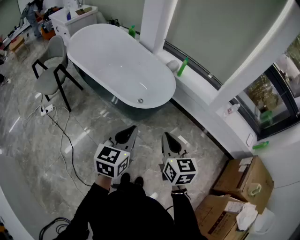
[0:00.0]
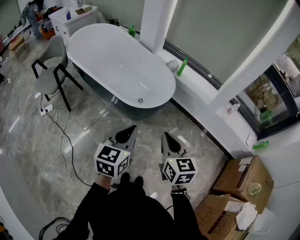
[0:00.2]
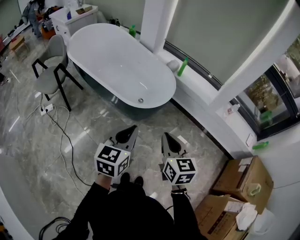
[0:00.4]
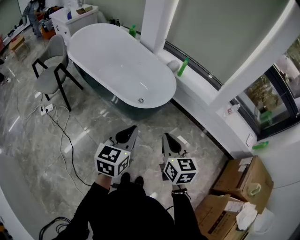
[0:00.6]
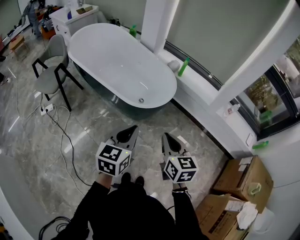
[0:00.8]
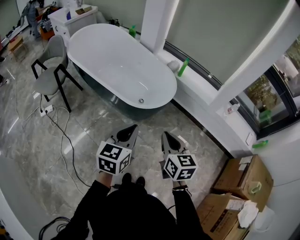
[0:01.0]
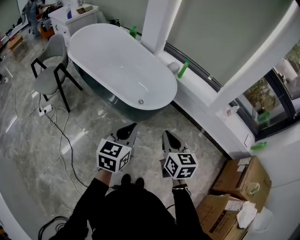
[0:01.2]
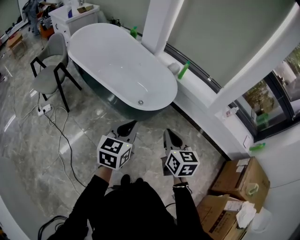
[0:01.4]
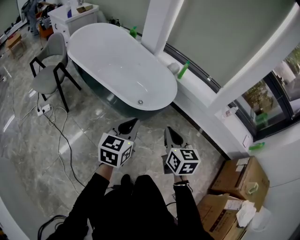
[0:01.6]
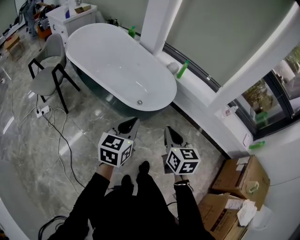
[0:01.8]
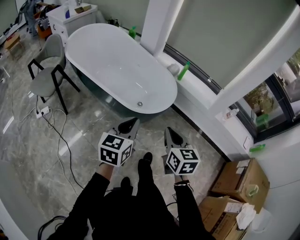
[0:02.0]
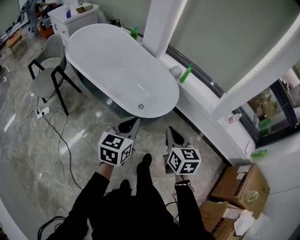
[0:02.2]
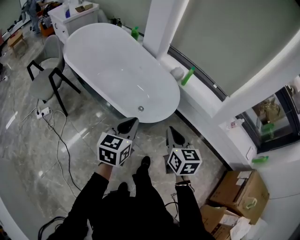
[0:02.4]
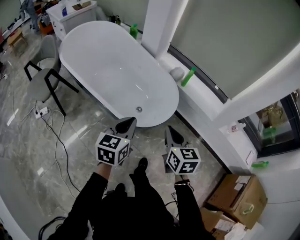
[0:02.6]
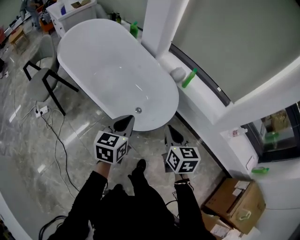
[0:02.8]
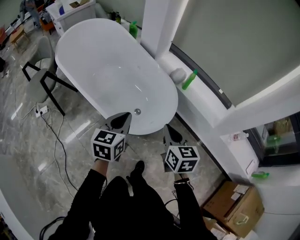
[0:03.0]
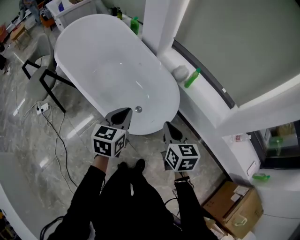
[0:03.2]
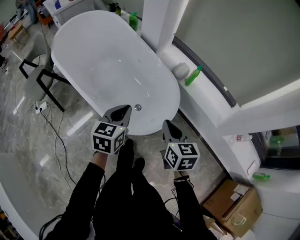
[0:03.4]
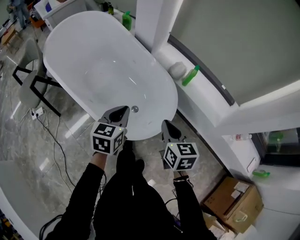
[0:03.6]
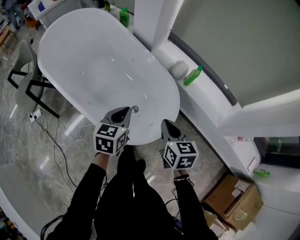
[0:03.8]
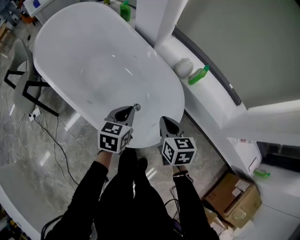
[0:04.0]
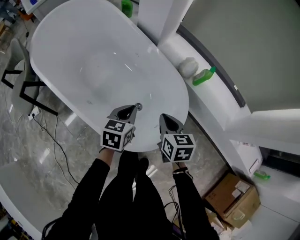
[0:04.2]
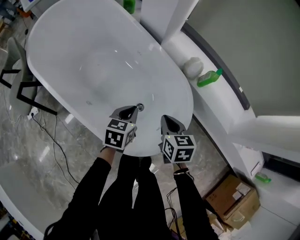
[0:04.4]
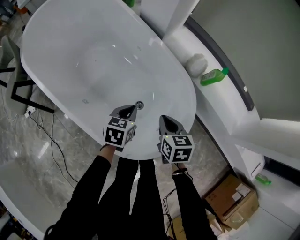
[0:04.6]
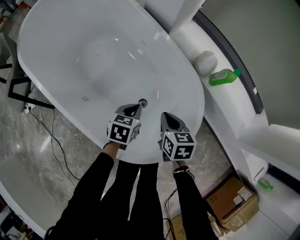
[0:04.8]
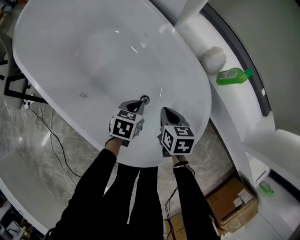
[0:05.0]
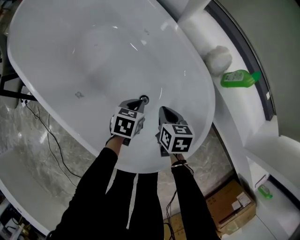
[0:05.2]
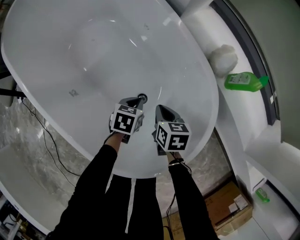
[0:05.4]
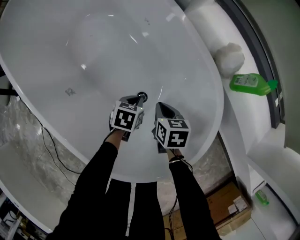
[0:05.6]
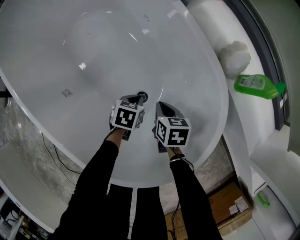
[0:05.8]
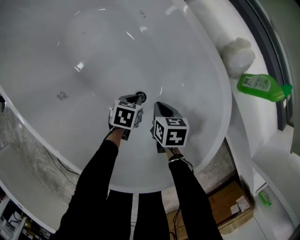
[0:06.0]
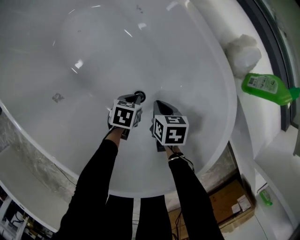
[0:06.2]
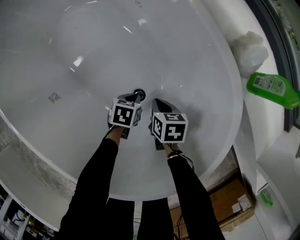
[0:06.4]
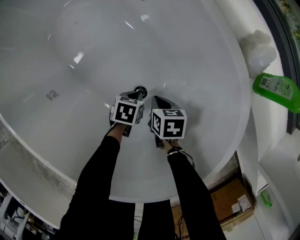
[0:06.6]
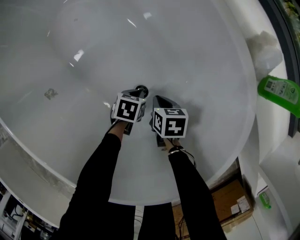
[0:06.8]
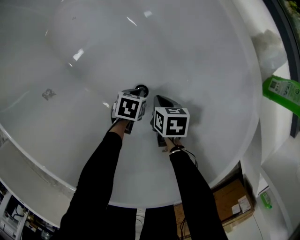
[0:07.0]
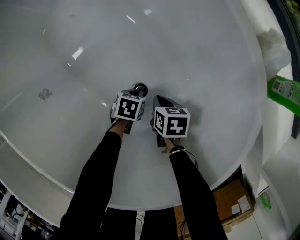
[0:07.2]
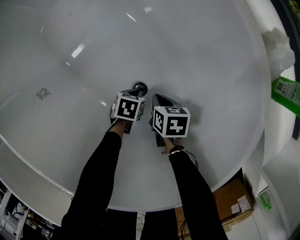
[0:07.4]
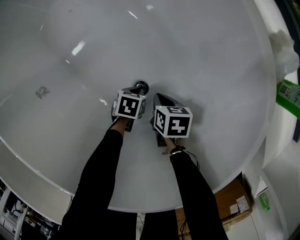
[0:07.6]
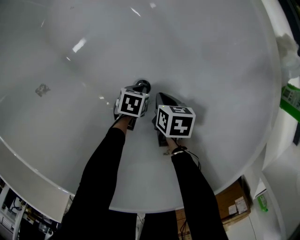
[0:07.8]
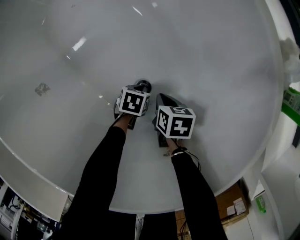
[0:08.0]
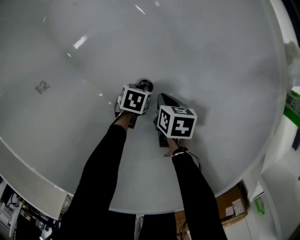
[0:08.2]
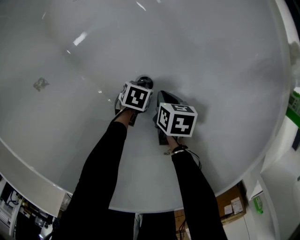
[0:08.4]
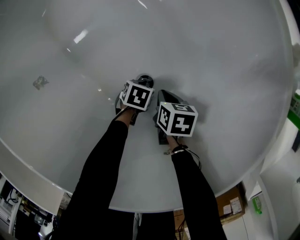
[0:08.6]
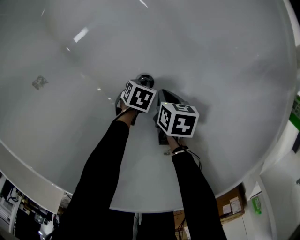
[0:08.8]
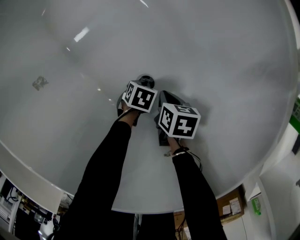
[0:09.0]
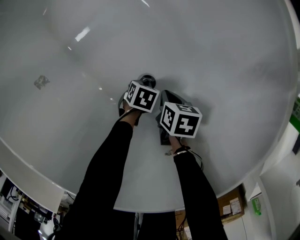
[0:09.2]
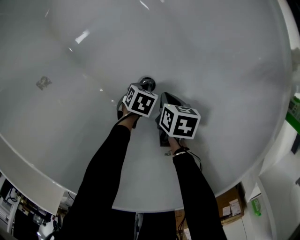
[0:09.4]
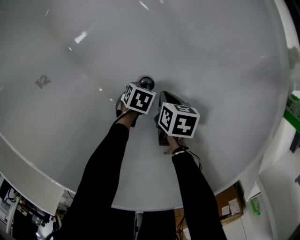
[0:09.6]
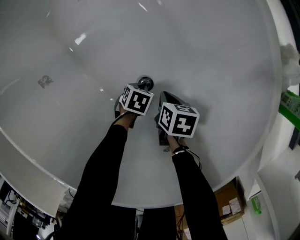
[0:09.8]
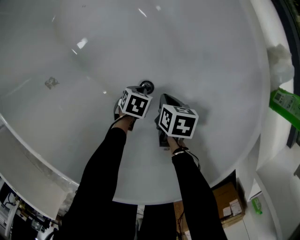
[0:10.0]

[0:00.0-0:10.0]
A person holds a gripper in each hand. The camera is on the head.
0:00.0 to 0:01.4: The left gripper ends up approximately 5 cm from where it was.
0:01.4 to 0:02.8: Both grippers move forward, approximately 25 cm.
0:02.8 to 0:04.2: Both grippers travel together forward and downward, approximately 25 cm.
0:04.2 to 0:05.8: Both grippers move downward, approximately 35 cm. The left gripper swivels roughly 30 degrees. Meanwhile the right gripper rotates about 20 degrees.
0:05.8 to 0:07.2: Both grippers travel together downward, about 15 cm.
0:07.2 to 0:08.6: There are only small adjustments of the grippers.
0:08.6 to 0:10.0: The left gripper heads upward, covering roughly 5 cm.

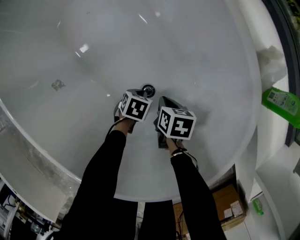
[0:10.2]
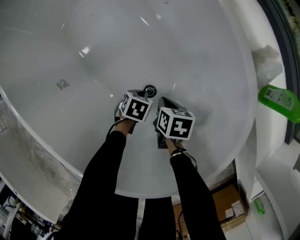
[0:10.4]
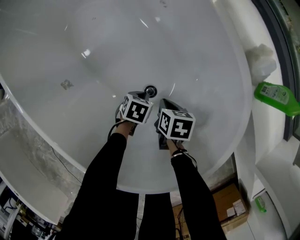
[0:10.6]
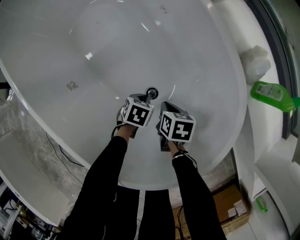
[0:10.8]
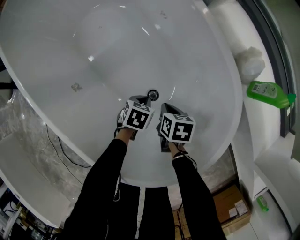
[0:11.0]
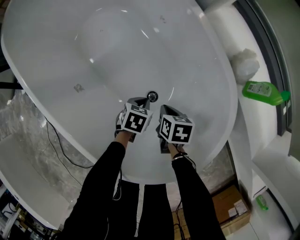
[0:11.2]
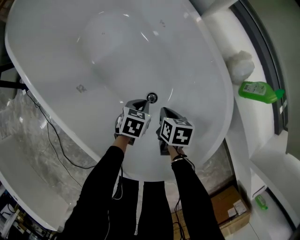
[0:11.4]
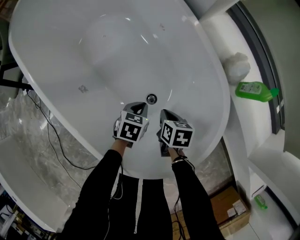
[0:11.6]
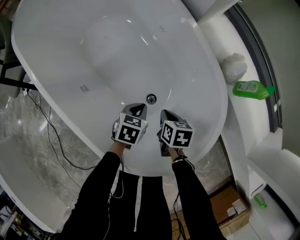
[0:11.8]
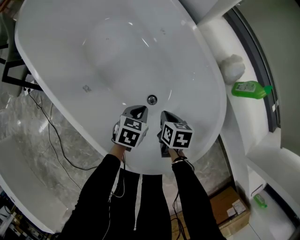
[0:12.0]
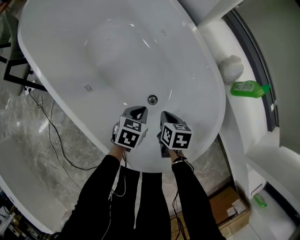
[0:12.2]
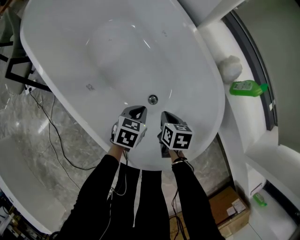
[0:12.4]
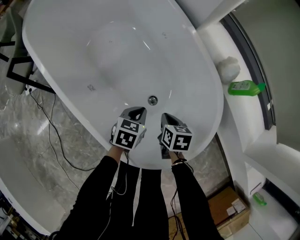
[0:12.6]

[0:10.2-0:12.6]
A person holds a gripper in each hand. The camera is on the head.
0:10.2 to 0:11.4: The grippers both shift upward by some 15 cm.
0:11.4 to 0:12.6: Both grippers travel together upward, approximately 10 cm.

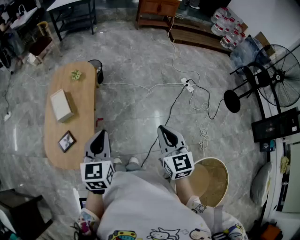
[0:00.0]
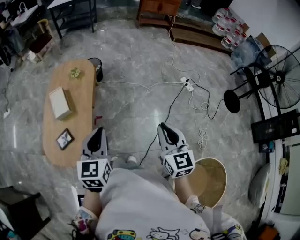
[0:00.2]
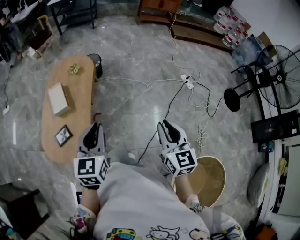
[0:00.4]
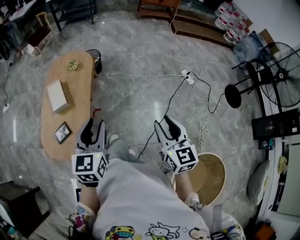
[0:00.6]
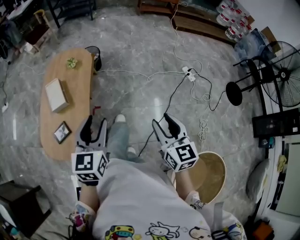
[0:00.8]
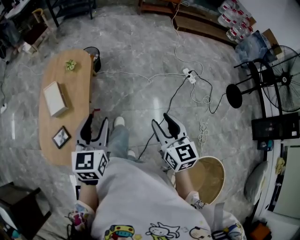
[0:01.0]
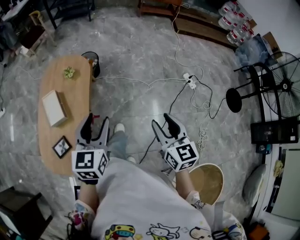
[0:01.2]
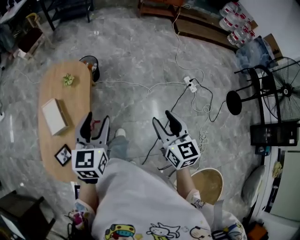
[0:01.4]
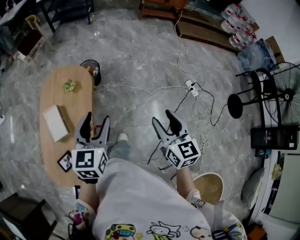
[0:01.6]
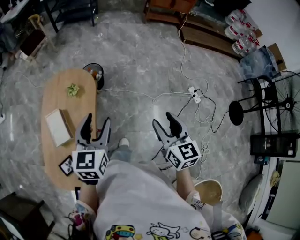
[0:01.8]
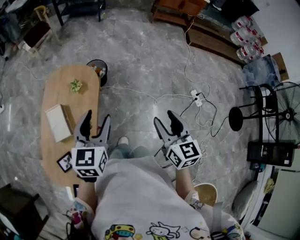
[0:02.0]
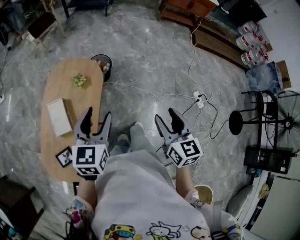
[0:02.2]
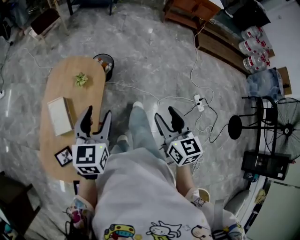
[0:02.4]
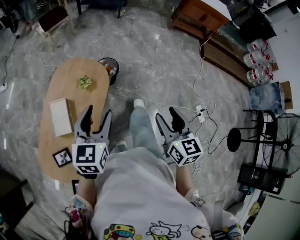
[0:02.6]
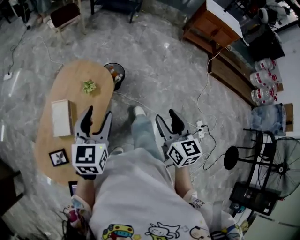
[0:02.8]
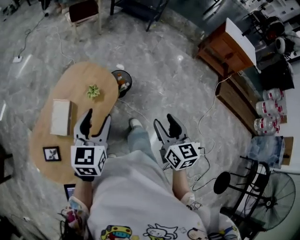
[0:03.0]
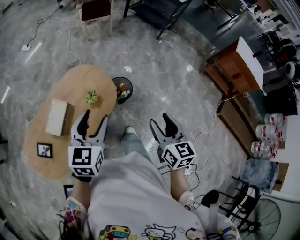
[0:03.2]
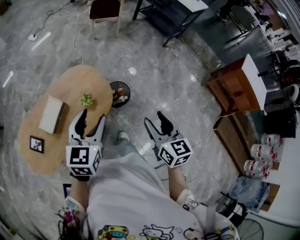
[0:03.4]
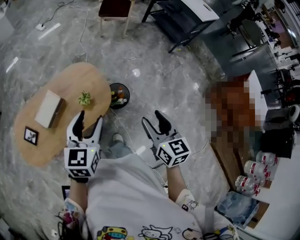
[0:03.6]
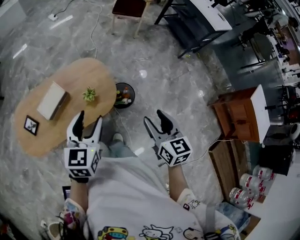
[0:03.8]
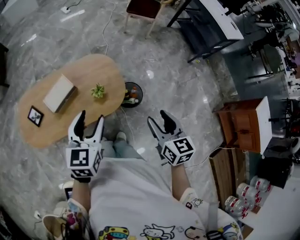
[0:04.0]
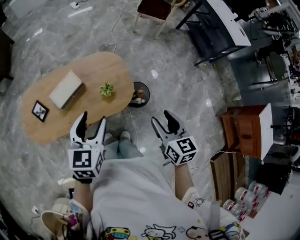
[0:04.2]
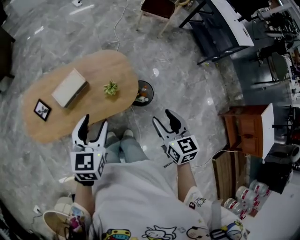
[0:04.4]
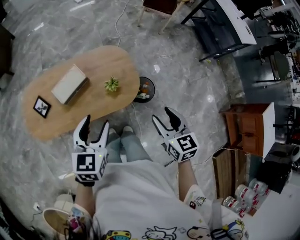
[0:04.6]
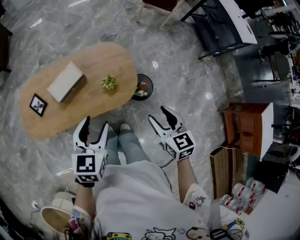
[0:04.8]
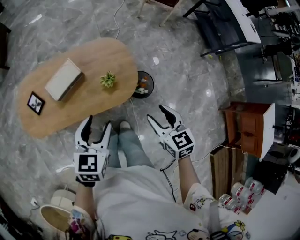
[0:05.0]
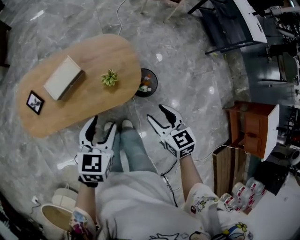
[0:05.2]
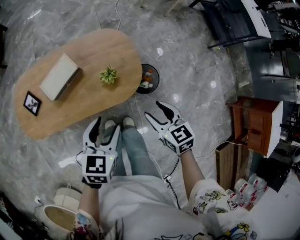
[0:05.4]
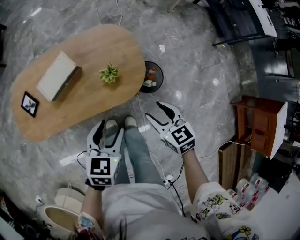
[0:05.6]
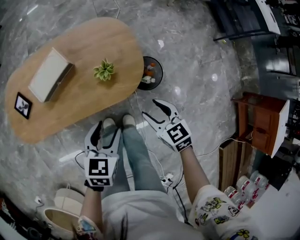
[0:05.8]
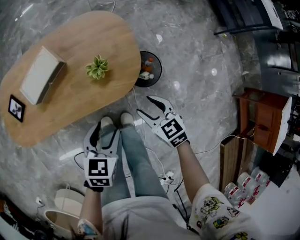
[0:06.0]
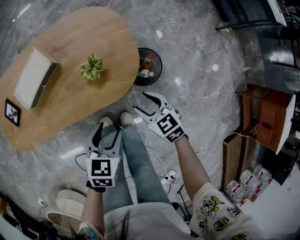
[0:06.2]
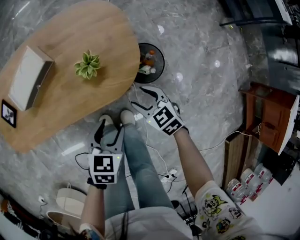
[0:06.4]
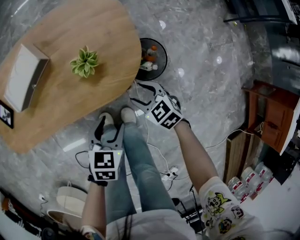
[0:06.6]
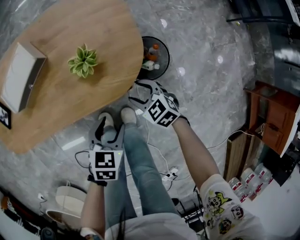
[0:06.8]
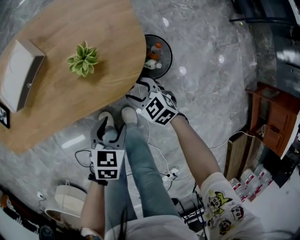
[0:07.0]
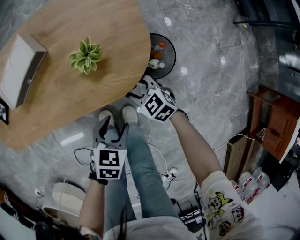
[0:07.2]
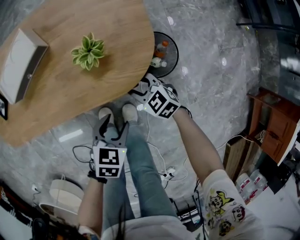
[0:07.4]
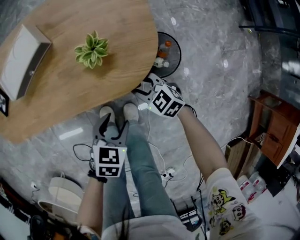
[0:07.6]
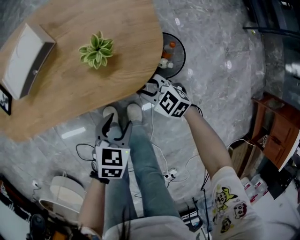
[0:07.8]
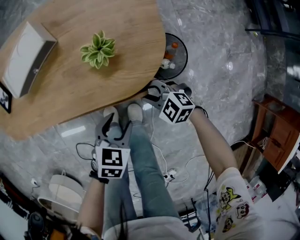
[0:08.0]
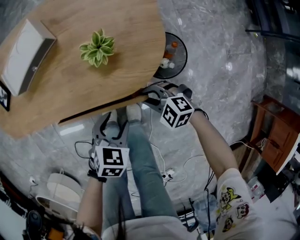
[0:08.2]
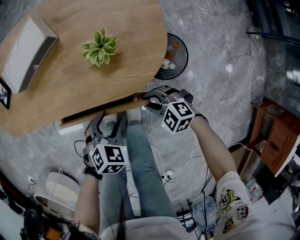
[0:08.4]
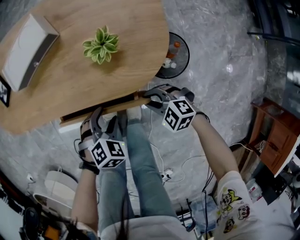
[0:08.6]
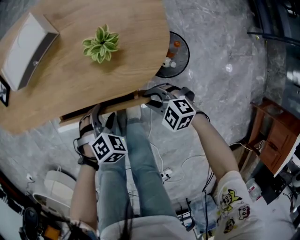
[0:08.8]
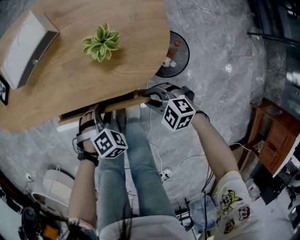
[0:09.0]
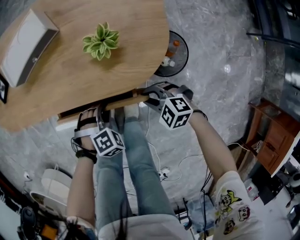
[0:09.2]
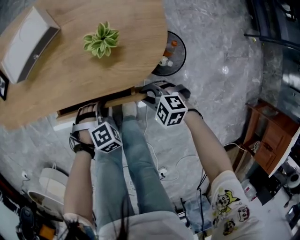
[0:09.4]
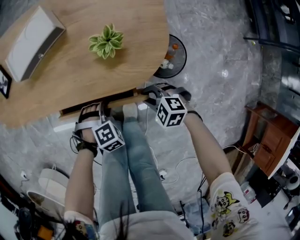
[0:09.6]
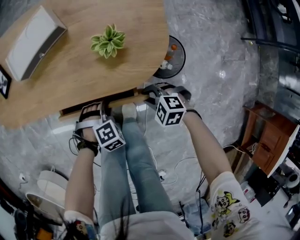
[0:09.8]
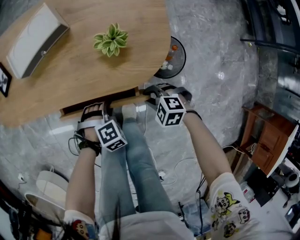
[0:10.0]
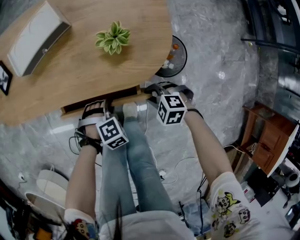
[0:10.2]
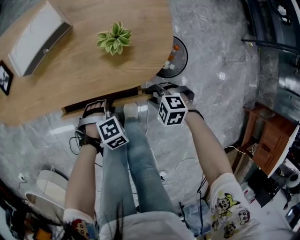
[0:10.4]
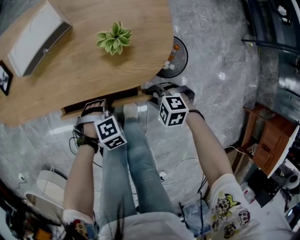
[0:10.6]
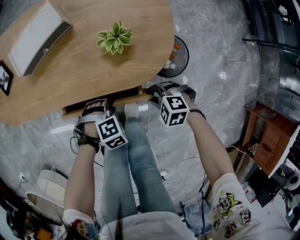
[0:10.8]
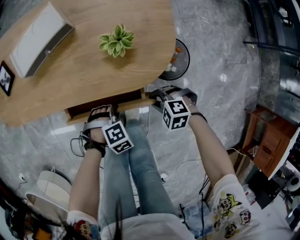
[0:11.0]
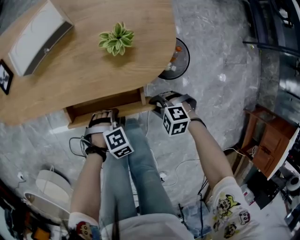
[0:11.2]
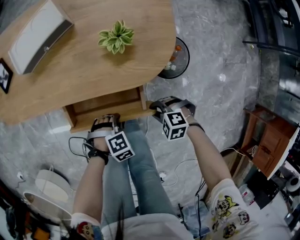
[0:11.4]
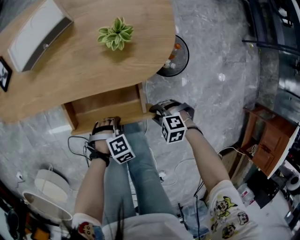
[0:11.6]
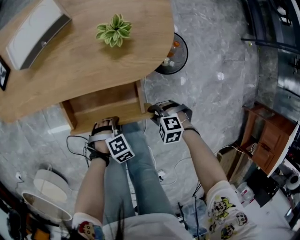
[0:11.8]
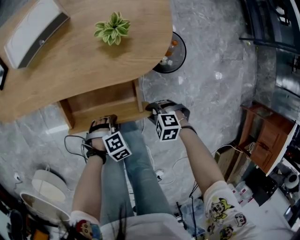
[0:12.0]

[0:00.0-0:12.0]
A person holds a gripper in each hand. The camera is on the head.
0:00.0 to 0:01.6: Both grippers travel together forward, about 30 cm. The left gripper opens. Meanwhile the right gripper opens its fingers.
0:01.6 to 0:03.0: The right gripper changes place by some 35 cm, and turns by about 30 degrees. Meanwhile the left gripper moves approximately 20 cm, and turns by approximately 30 degrees.
0:03.0 to 0:04.4: The left gripper rotates roughly 40 degrees. The right gripper ends up approximately 20 cm from where it was, and changes its angle by some 50 degrees.
0:04.4 to 0:06.0: The grippers both shift downward by some 30 cm. The left gripper turns by roughly 20 degrees. The right gripper swivels about 30 degrees.
0:06.0 to 0:07.6: Both grippers move downward, approximately 20 cm. The right gripper changes its angle by some 30 degrees.
0:07.6 to 0:09.0: The left gripper is displaced downward by about 5 cm, and turns by roughly 50 degrees. The right gripper shifts by some 5 cm, and swivels roughly 30 degrees.
0:09.0 to 0:10.4: The left gripper closes its fingers.
0:10.4 to 0:12.0: The right gripper moves roughly 10 cm. Meanwhile the left gripper changes place by approximately 10 cm.
